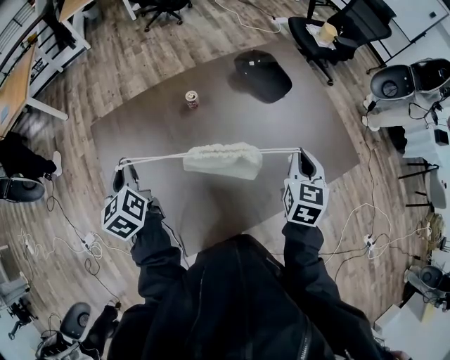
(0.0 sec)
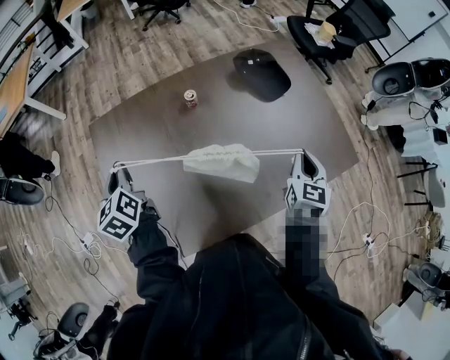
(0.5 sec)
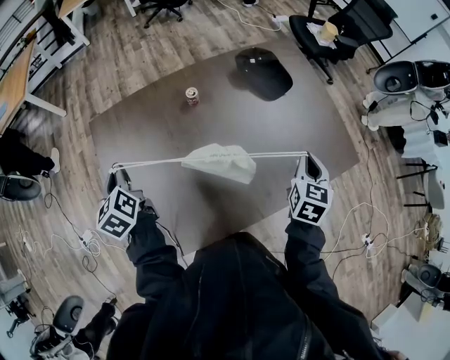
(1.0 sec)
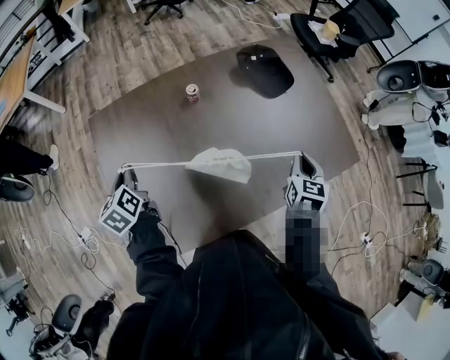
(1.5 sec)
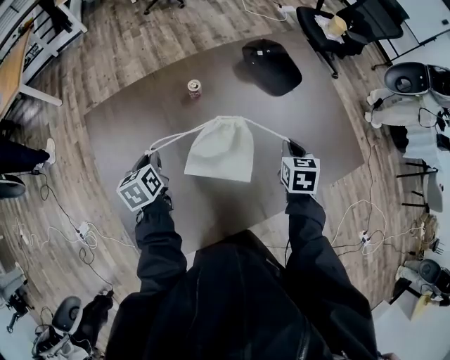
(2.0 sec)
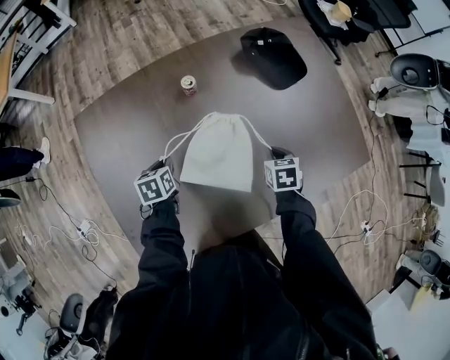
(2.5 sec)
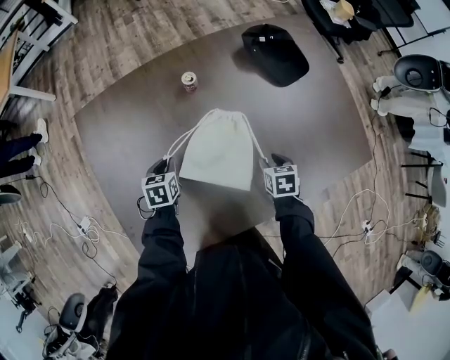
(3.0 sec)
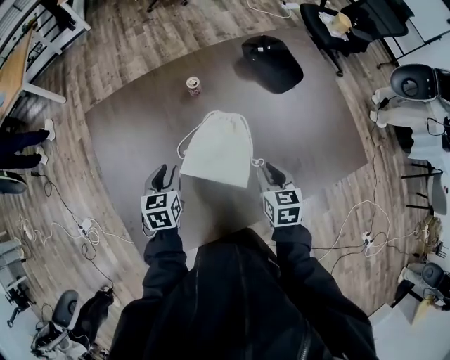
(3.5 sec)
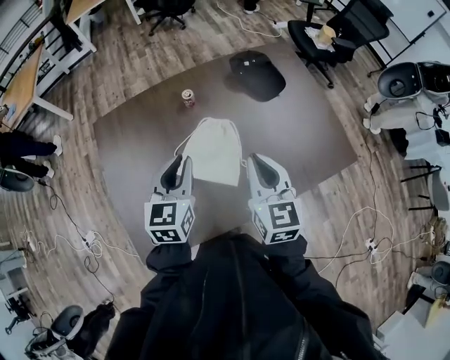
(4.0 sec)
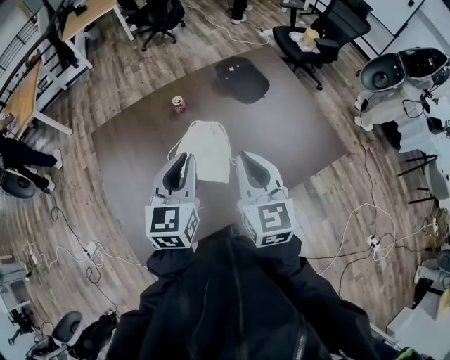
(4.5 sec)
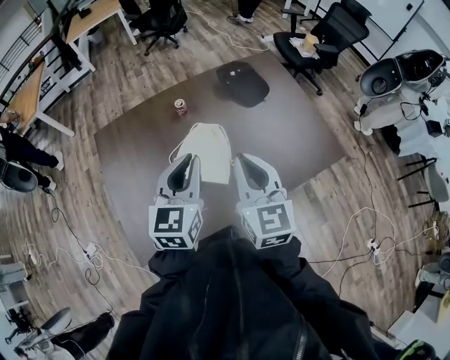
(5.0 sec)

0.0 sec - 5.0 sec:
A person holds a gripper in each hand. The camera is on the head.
0.0 sec - 2.5 sec: Both grippers move downward, roughly 25 cm. The right gripper points its fingers roughly 30 degrees further downward; the left gripper angles its fingers downward, by about 30 degrees.
2.5 sec - 5.0 sec: The right gripper goes about 40 cm upward and backward, angles its fingers upward, by some 50 degrees, and opens and closes again. The left gripper is displaced upward, to the right and backward by about 40 cm, points its fingers approximately 40 degrees further upward, and opens, then closes once more.

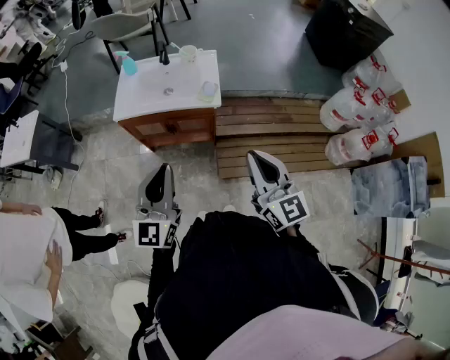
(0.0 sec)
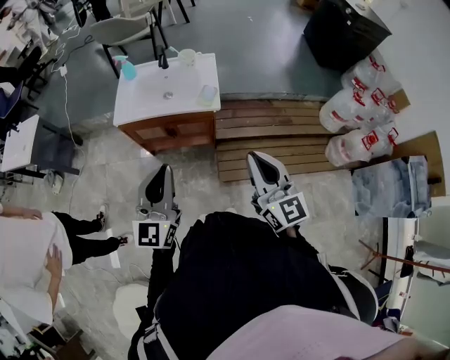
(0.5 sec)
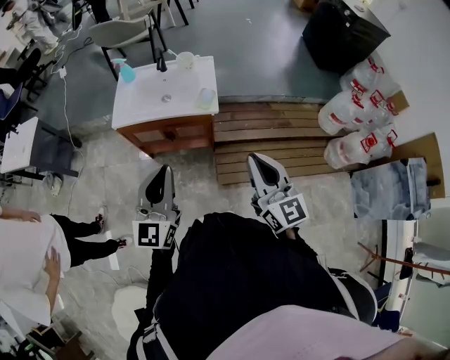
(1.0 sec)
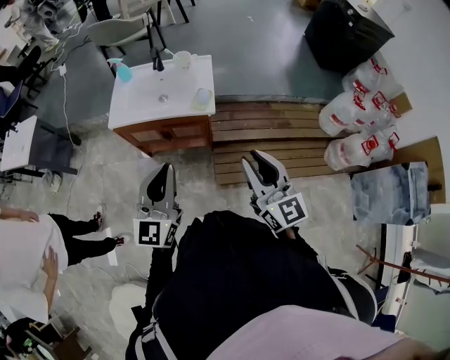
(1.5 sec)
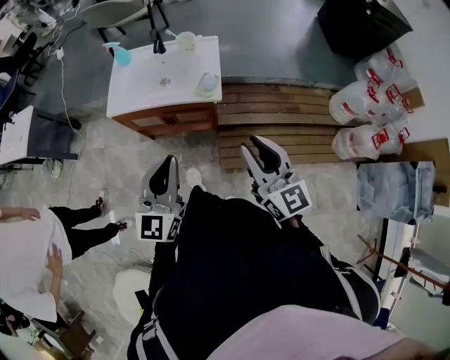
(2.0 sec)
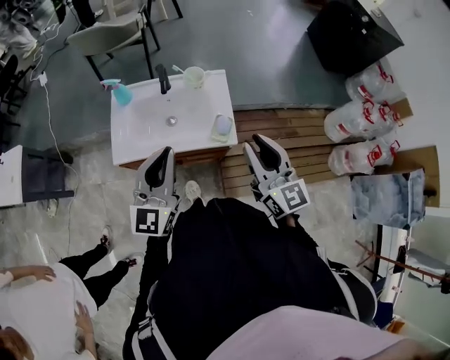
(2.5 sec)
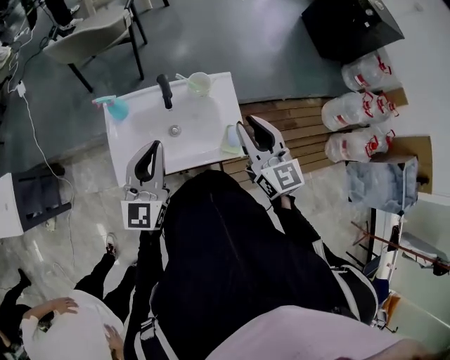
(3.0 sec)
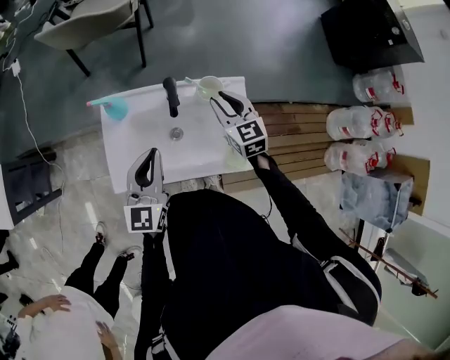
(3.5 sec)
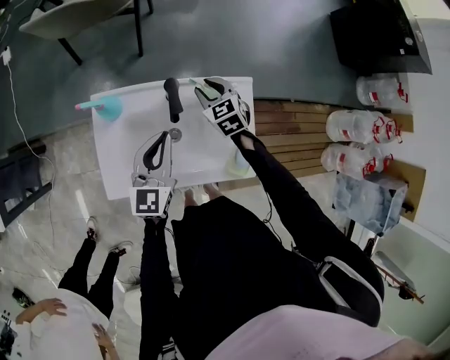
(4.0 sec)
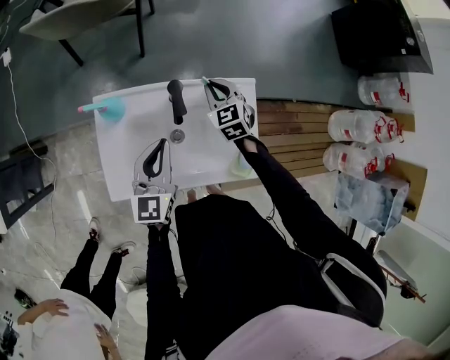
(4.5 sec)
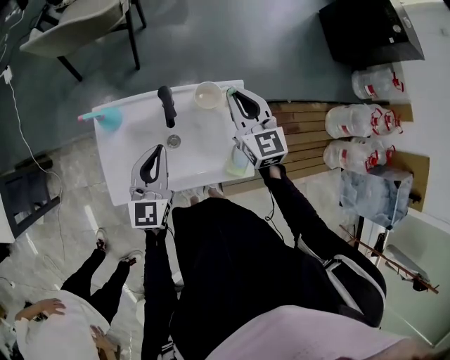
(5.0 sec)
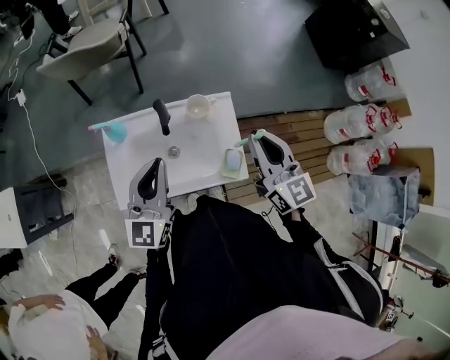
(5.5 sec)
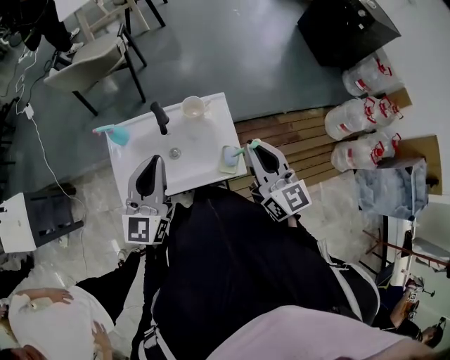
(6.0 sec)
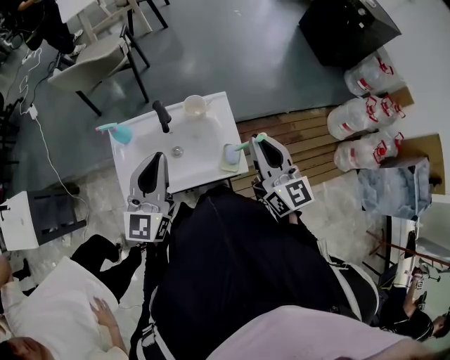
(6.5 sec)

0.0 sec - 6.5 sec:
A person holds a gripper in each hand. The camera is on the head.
0.0 sec - 2.0 sec: The two grippers go about 10 cm forward. The right gripper opens up.
2.0 sec - 4.5 sec: The pair of grippers is taken forward, about 60 cm. The right gripper shifts about 30 cm downward, tips its fingers downward by roughly 40 degrees, and closes its fingers.
4.5 sec - 6.5 sec: The right gripper goes some 40 cm upward, backward and to the right, and tips its fingers upward by approximately 40 degrees. The left gripper shifts roughly 25 cm upward and backward.

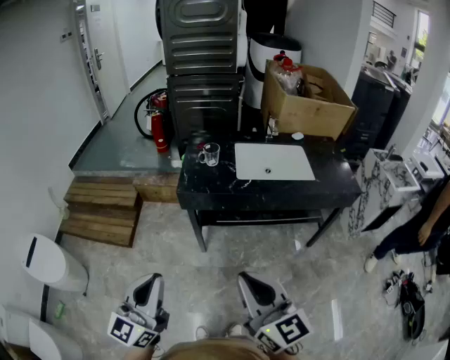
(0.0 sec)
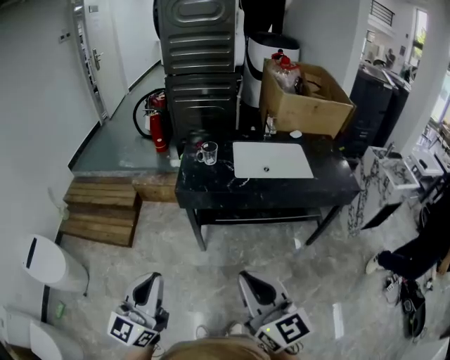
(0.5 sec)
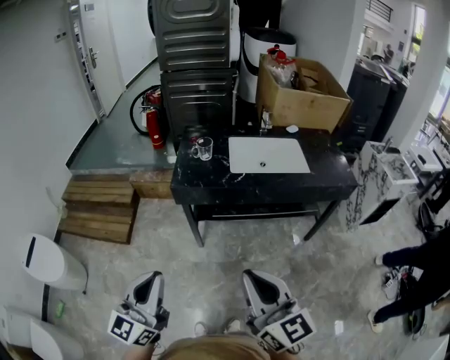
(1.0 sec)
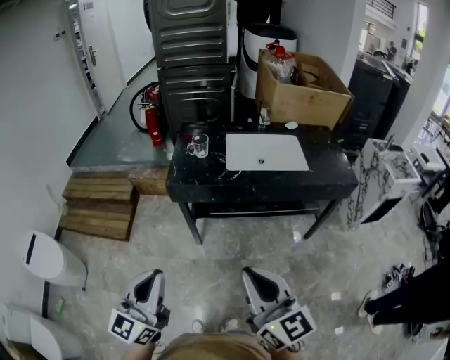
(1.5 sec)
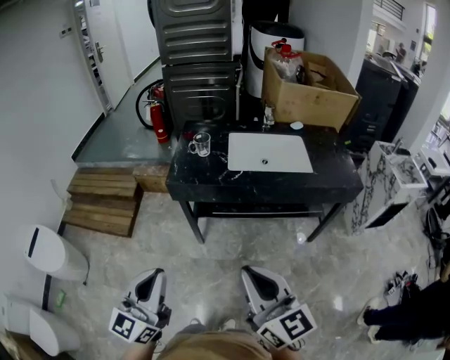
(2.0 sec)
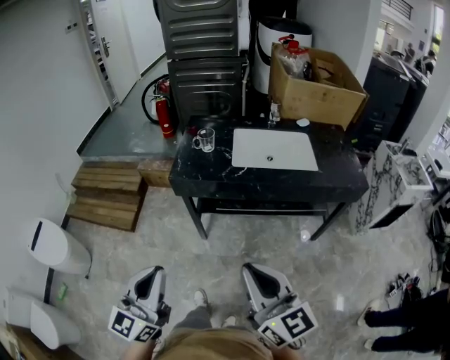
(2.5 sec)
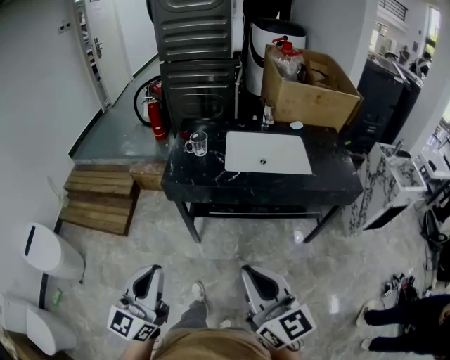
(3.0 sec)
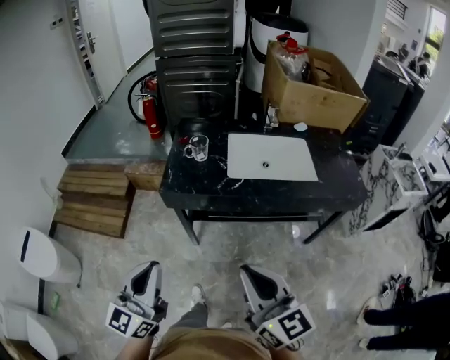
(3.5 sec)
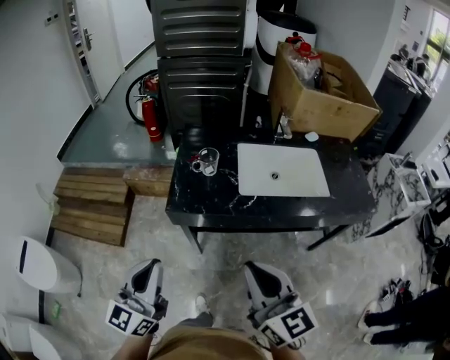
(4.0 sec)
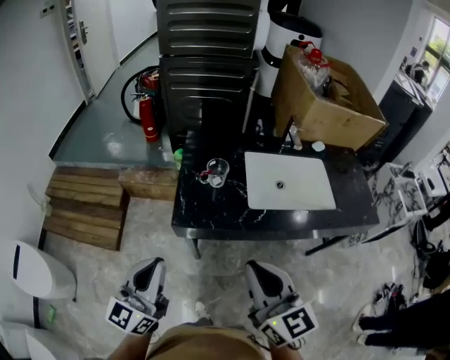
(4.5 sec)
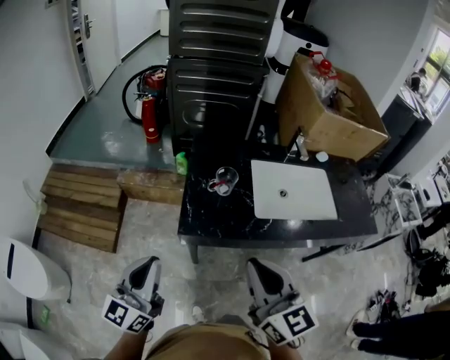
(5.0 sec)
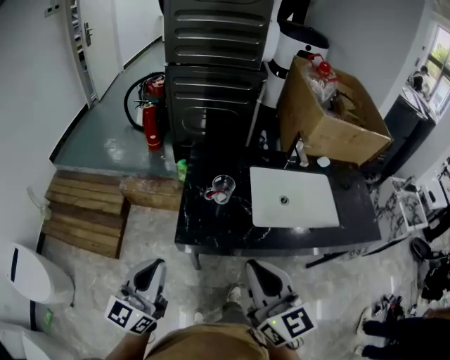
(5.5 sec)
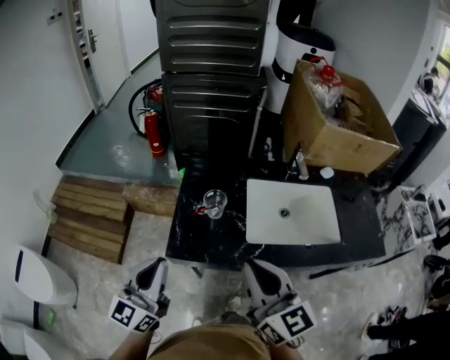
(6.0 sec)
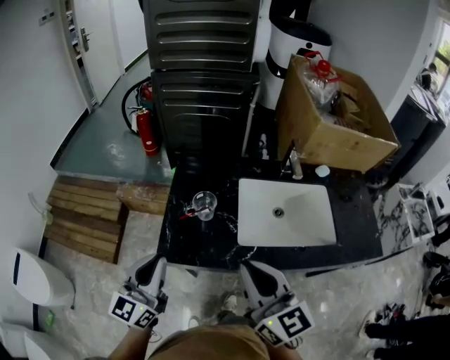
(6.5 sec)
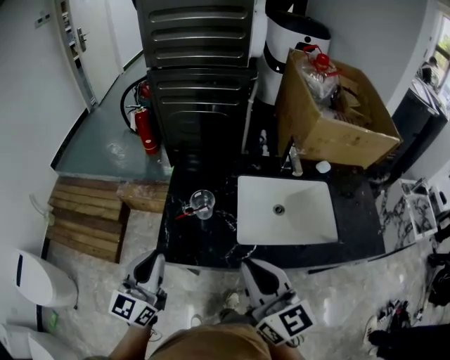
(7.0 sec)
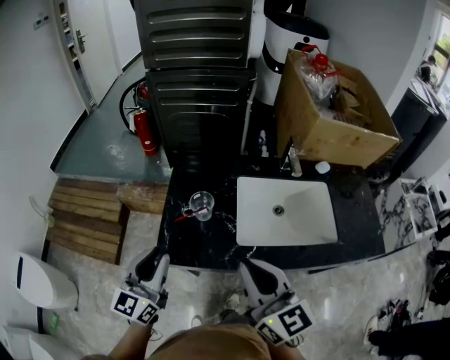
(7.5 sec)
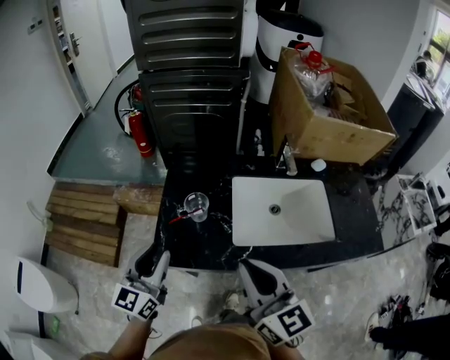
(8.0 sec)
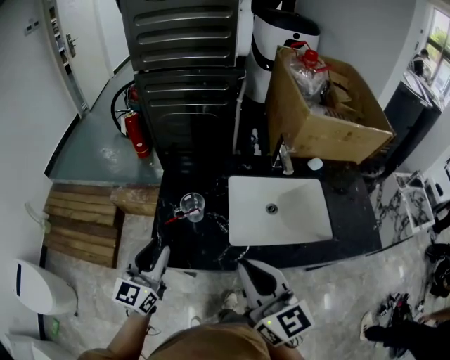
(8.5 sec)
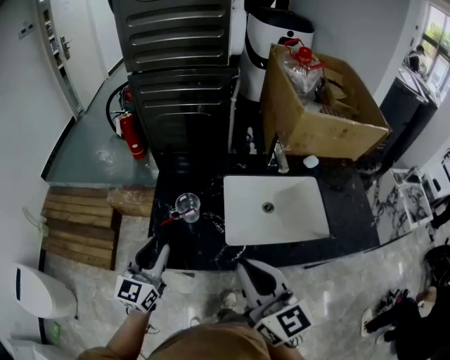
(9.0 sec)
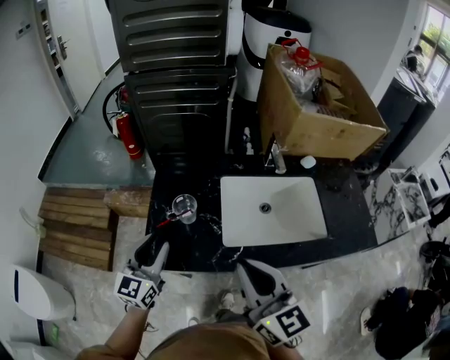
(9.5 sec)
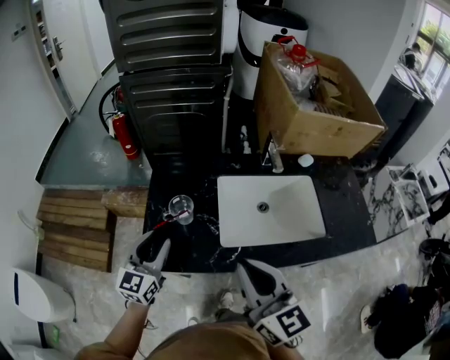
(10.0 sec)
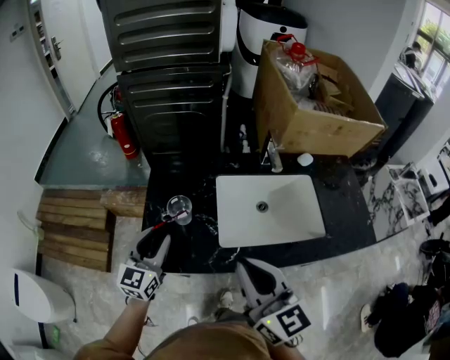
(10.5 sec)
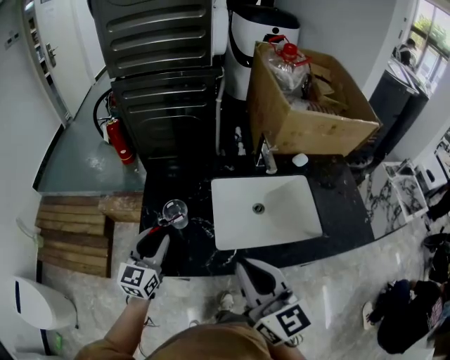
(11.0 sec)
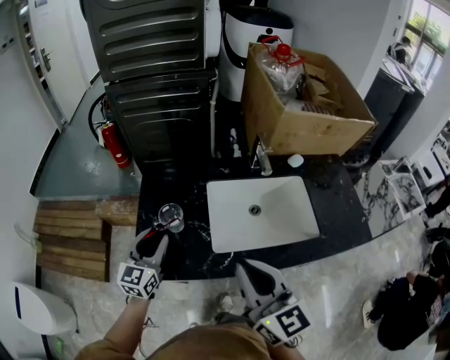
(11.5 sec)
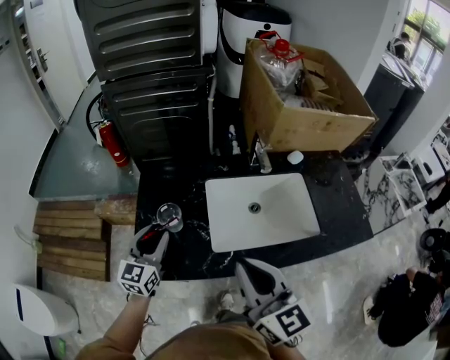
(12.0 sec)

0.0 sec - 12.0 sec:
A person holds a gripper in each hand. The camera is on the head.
0.0 sec - 2.0 sec: The two grippers go about 10 cm to the right.
2.0 sec - 4.0 sec: Both grippers travel together forward, roughly 20 cm.
4.0 sec - 6.0 sec: Both grippers move forward, some 20 cm.
6.0 sec - 8.0 sec: The left gripper goes about 5 cm forward, and opens its fingers, while the right gripper changes place by some 5 cm.
8.0 sec - 10.0 sec: The left gripper goes approximately 5 cm forward.
10.0 sec - 12.0 sec: The left gripper goes approximately 5 cm forward.

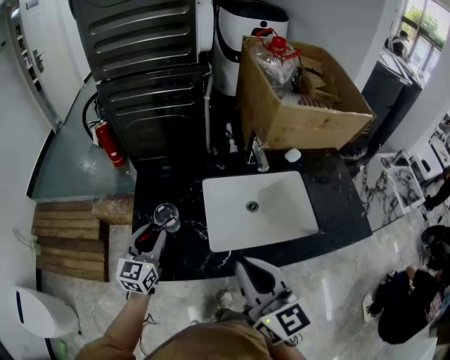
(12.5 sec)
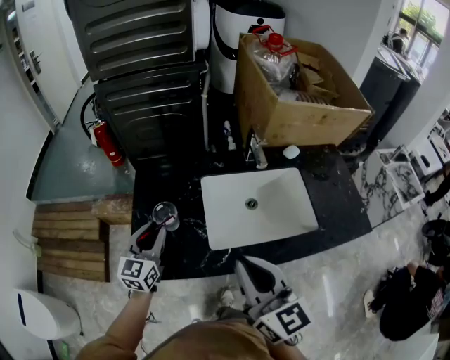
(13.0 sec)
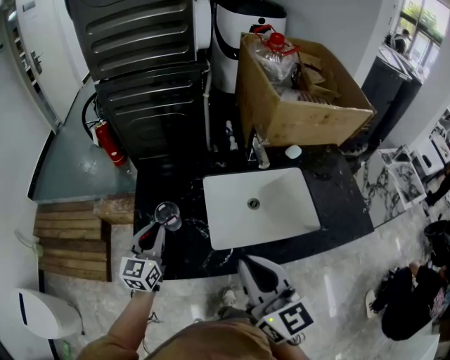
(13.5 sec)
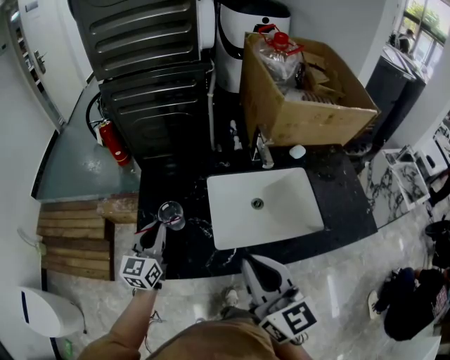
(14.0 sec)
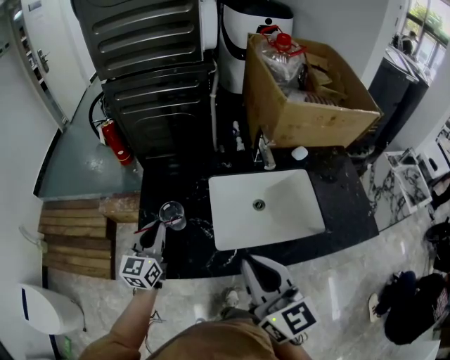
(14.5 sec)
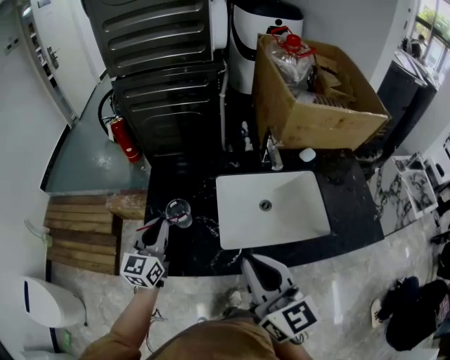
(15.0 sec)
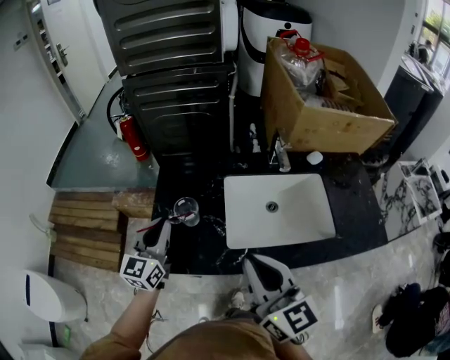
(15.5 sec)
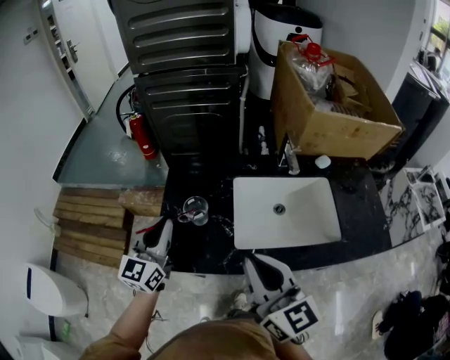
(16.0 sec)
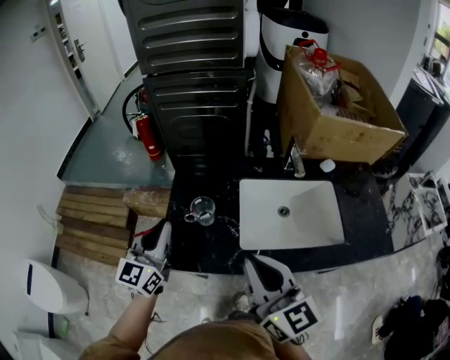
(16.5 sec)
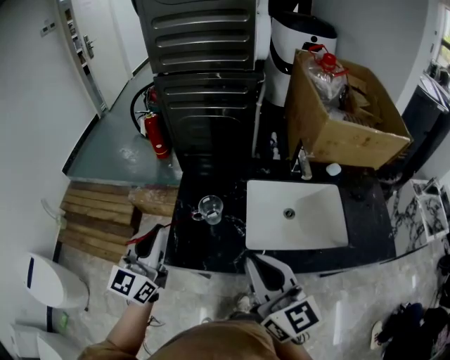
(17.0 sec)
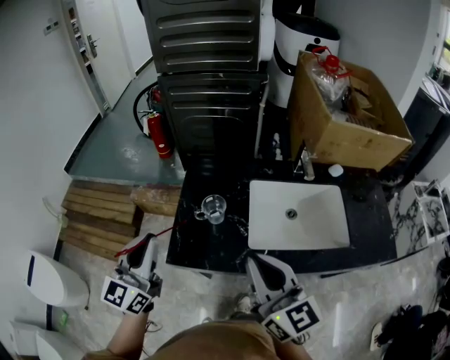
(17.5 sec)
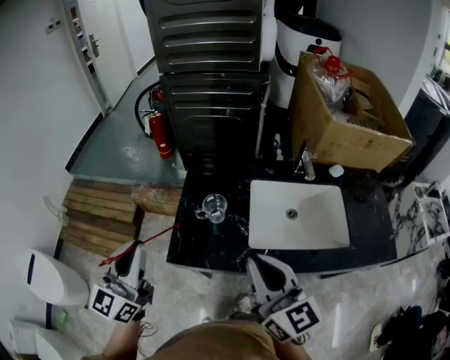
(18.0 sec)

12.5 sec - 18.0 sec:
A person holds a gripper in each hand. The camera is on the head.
12.5 sec - 14.5 sec: The left gripper closes its fingers.
14.5 sec - 16.0 sec: The left gripper moves upward, approximately 10 cm.
16.0 sec - 18.0 sec: The left gripper heads backward, to the left and upward, covering about 15 cm.
